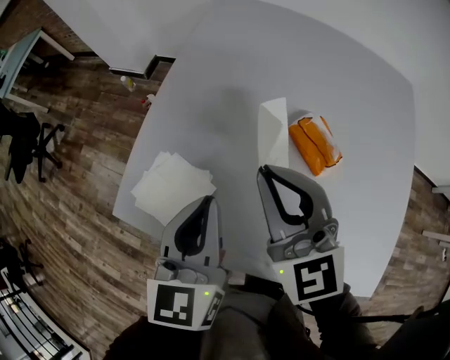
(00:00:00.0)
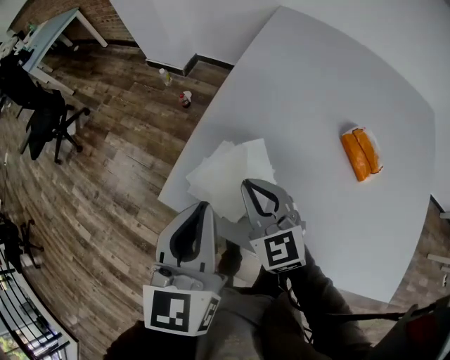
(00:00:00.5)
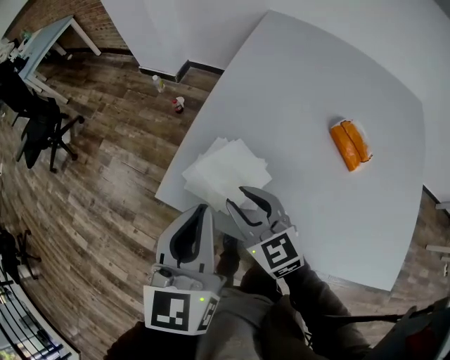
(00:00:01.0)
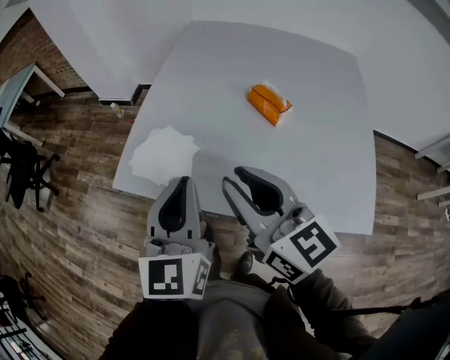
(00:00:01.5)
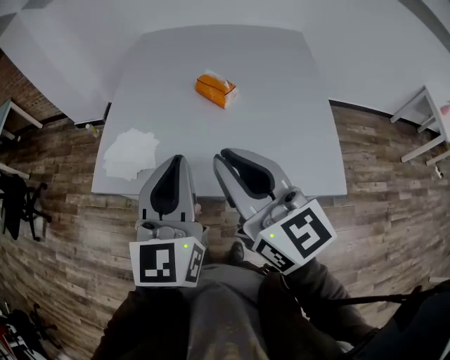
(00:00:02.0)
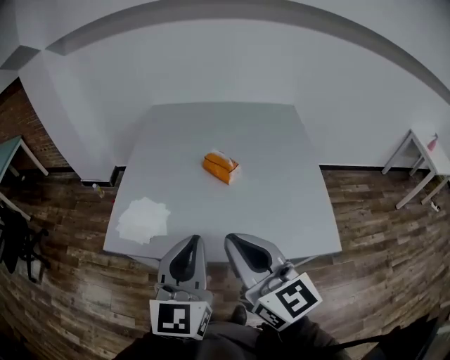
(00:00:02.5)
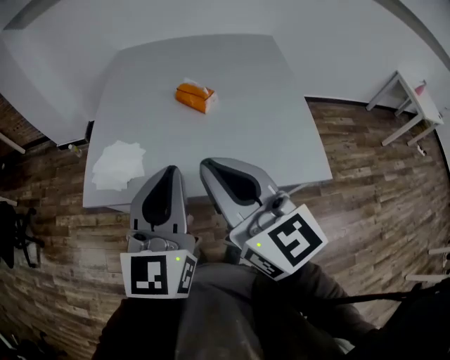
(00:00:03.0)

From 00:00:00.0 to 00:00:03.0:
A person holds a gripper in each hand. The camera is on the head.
From 00:00:00.0 to 00:00:01.5: The left gripper heads backward and upward, covering about 20 cm, and goes to the left and returns, approximately 20 cm each way. Meanwhile the right gripper heads backward, covering some 20 cm, turns by some 30 degrees, and opens its fingers.
From 00:00:01.5 to 00:00:03.0: The left gripper goes about 15 cm to the right, backward and upward, and swivels roughly 20 degrees; the right gripper shifts roughly 15 cm backward, upward and to the right, and closes.

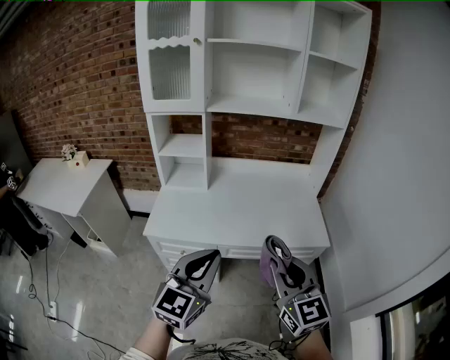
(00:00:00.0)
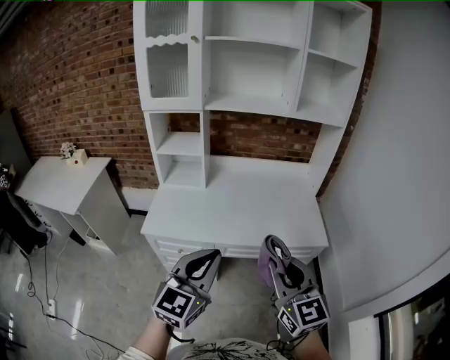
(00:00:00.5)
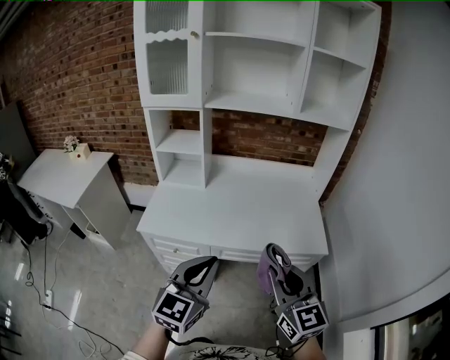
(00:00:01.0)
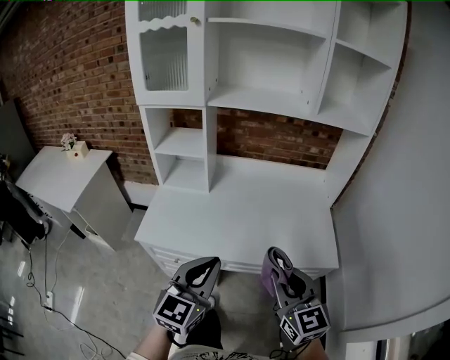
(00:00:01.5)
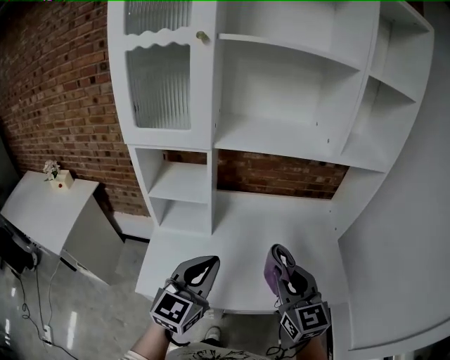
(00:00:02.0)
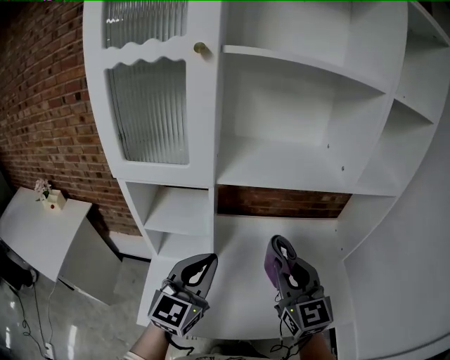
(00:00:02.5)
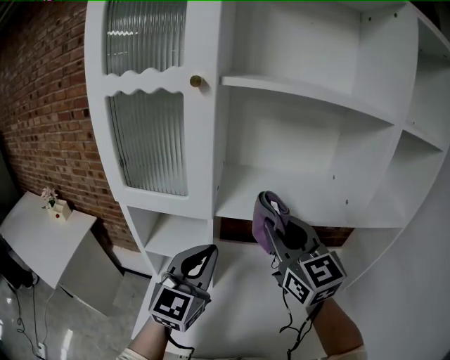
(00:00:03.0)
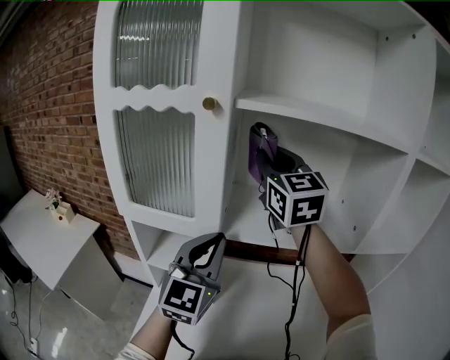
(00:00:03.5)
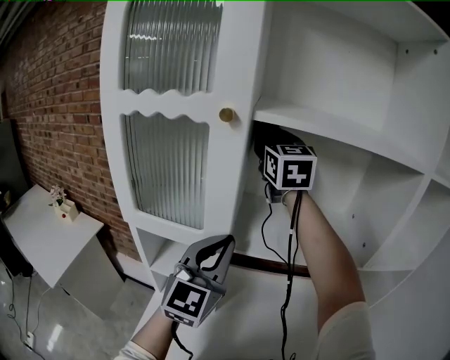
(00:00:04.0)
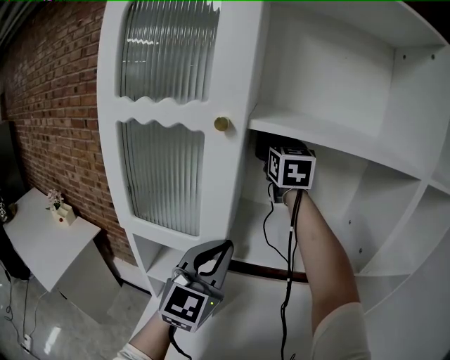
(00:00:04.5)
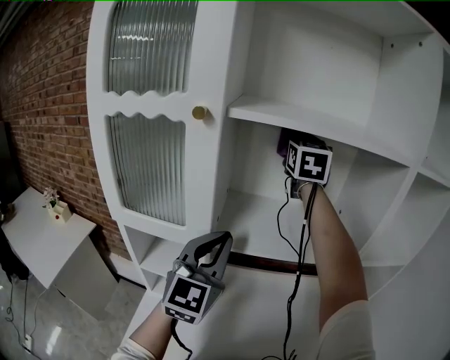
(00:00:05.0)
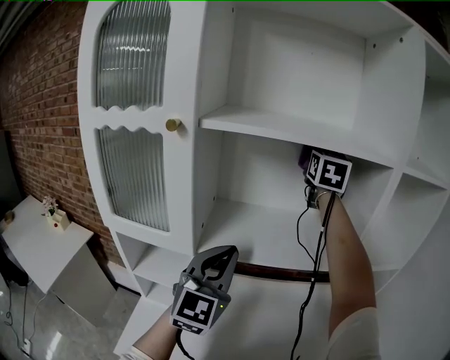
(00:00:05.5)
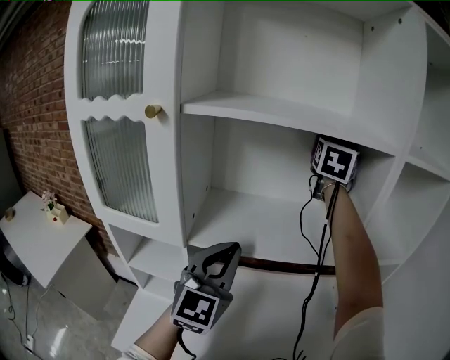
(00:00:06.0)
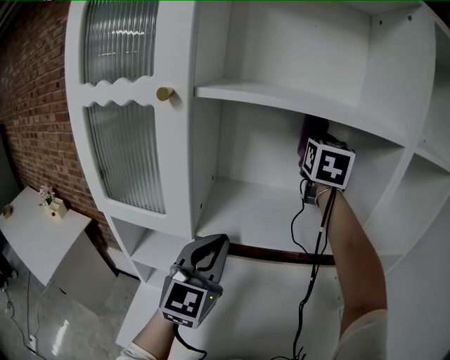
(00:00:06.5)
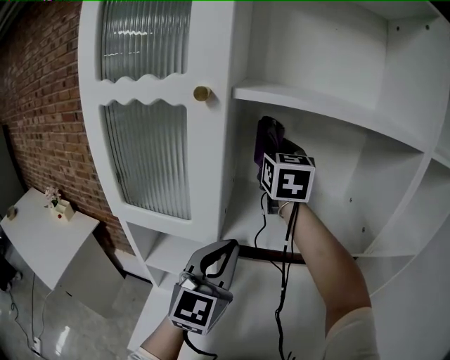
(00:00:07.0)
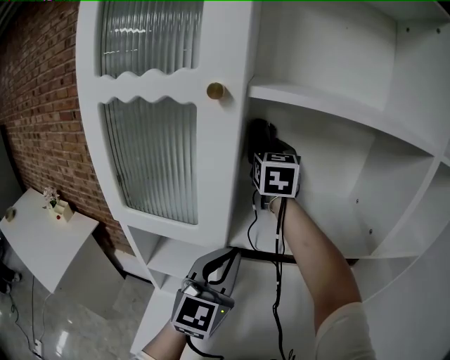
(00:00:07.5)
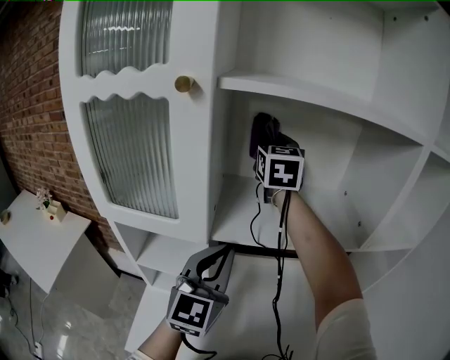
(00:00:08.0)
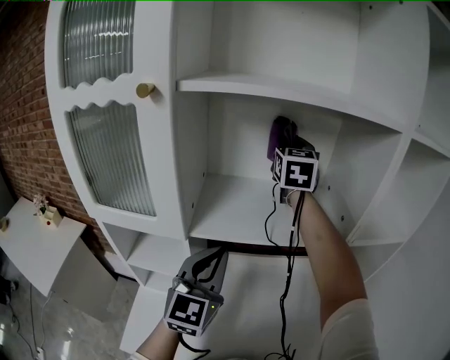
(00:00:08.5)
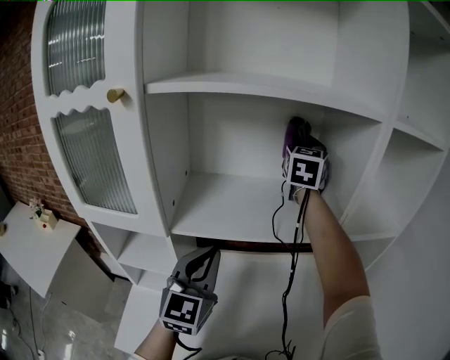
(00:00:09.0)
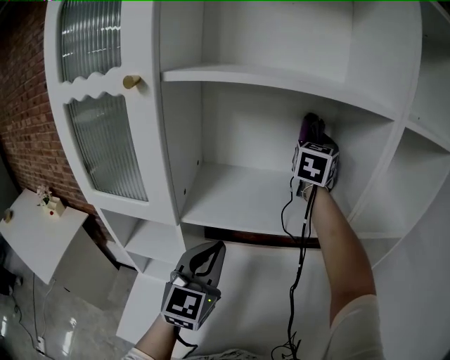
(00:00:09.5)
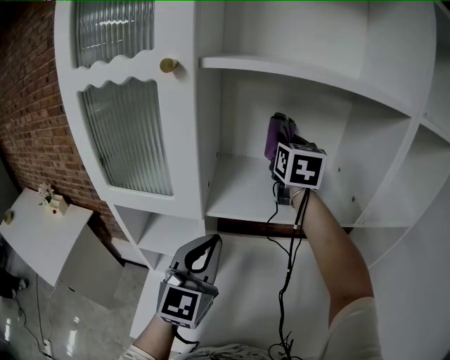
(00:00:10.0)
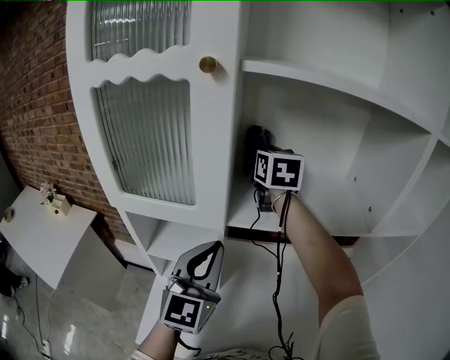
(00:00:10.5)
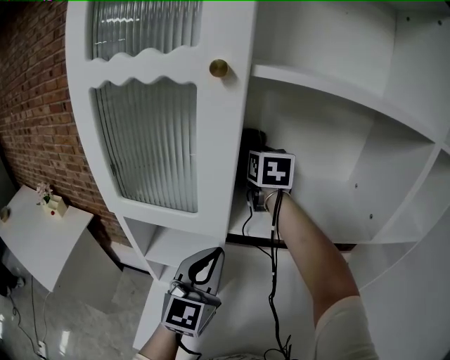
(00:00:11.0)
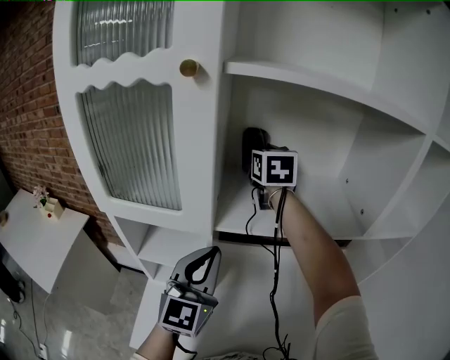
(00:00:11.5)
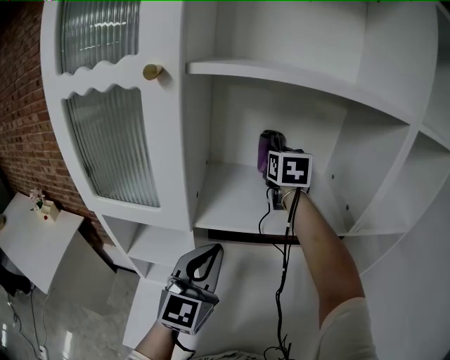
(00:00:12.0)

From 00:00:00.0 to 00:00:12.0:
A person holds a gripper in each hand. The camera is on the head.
From 00:00:00.0 to 00:00:02.0: The two grippers go some 30 cm forward.
From 00:00:02.0 to 00:00:04.0: The left gripper shifts approximately 35 cm forward and upward, and changes its angle by approximately 20 degrees. The right gripper goes approximately 60 cm forward and upward.
From 00:00:04.0 to 00:00:06.0: The right gripper heads to the right, covering roughly 30 cm, and rotates approximately 40 degrees; the left gripper moves to the right, roughly 10 cm.
From 00:00:06.0 to 00:00:08.0: The right gripper heads to the left, covering about 25 cm, and rotates about 20 degrees. The left gripper heads to the left, covering some 10 cm.
From 00:00:08.0 to 00:00:10.0: The right gripper goes some 10 cm to the right.
From 00:00:10.0 to 00:00:12.0: The right gripper goes to the left and returns, some 15 cm each way.

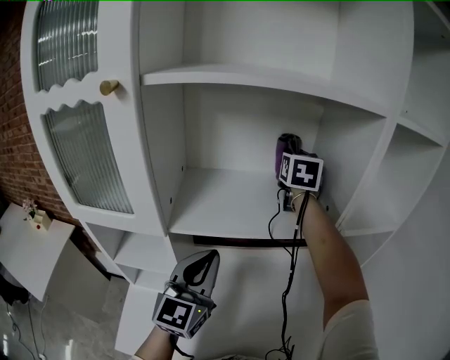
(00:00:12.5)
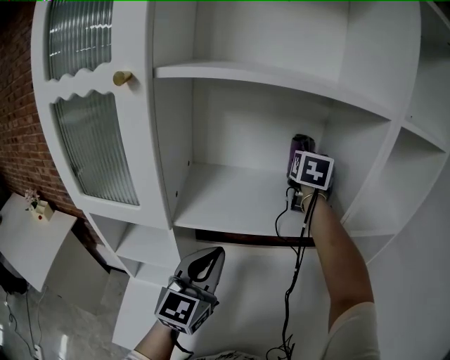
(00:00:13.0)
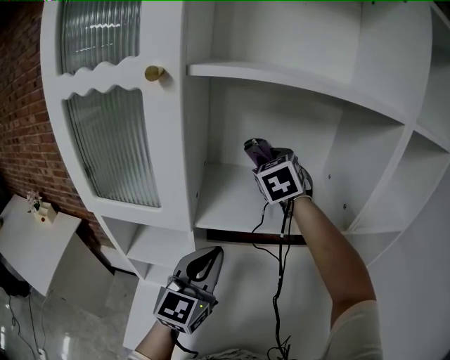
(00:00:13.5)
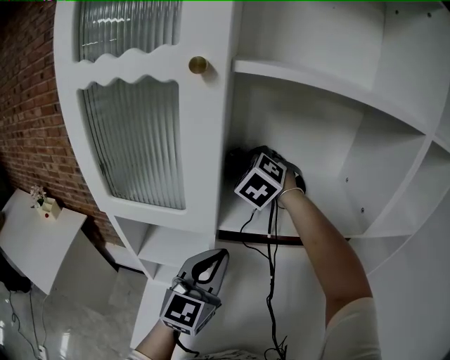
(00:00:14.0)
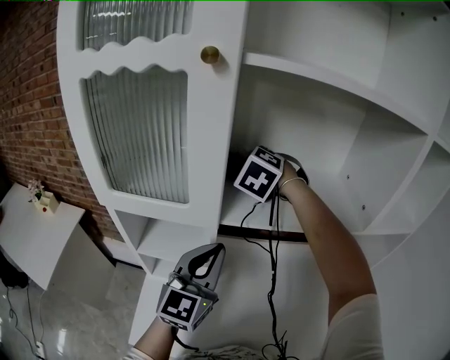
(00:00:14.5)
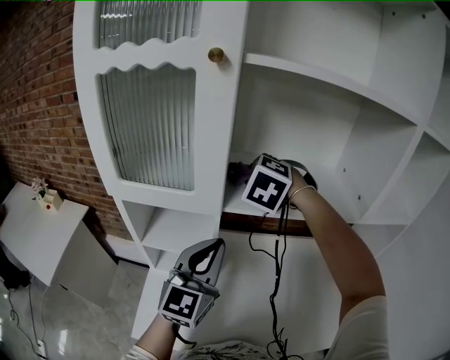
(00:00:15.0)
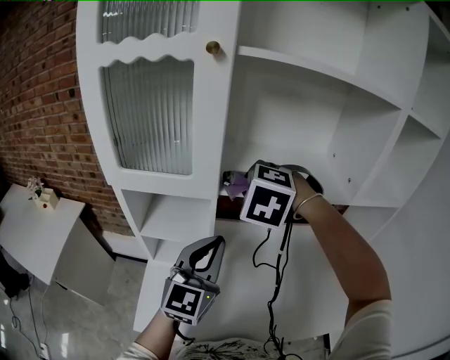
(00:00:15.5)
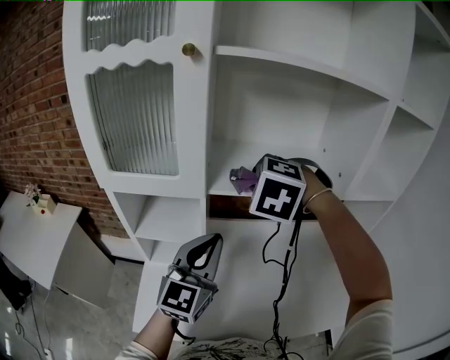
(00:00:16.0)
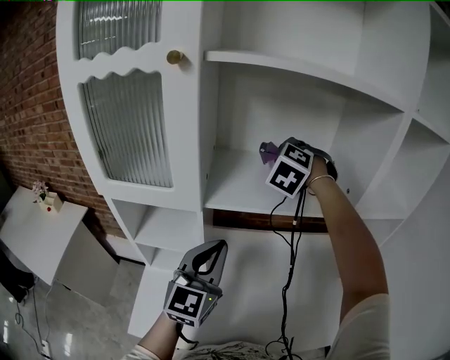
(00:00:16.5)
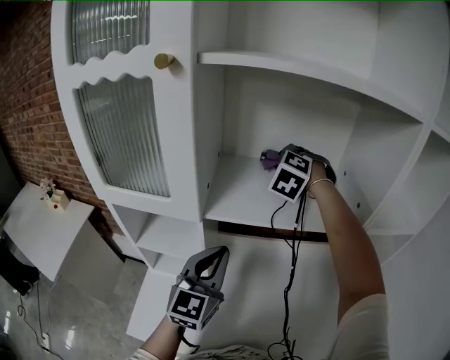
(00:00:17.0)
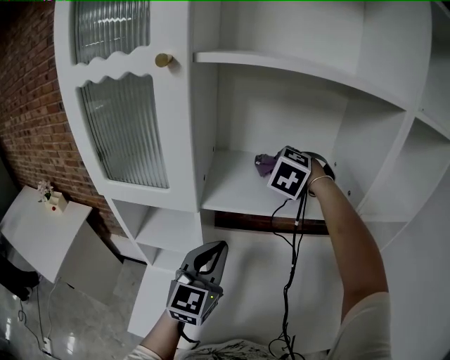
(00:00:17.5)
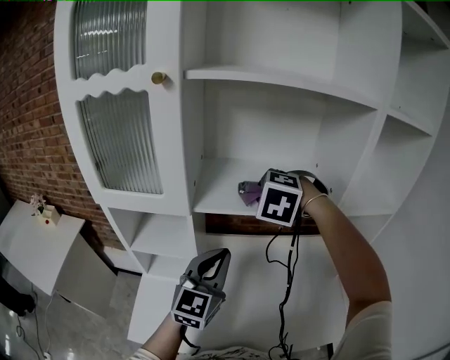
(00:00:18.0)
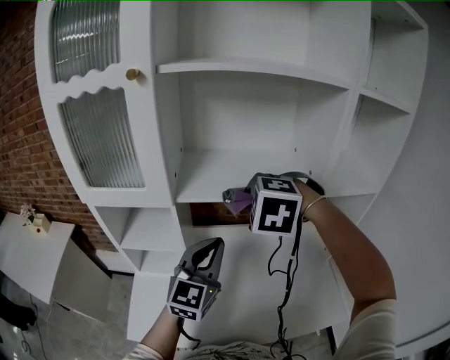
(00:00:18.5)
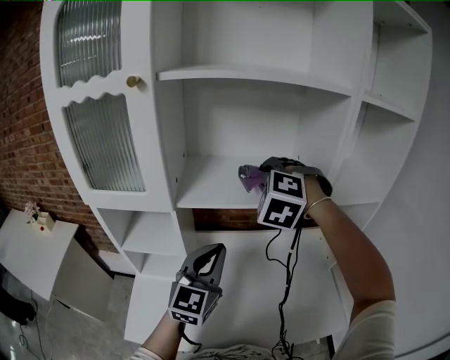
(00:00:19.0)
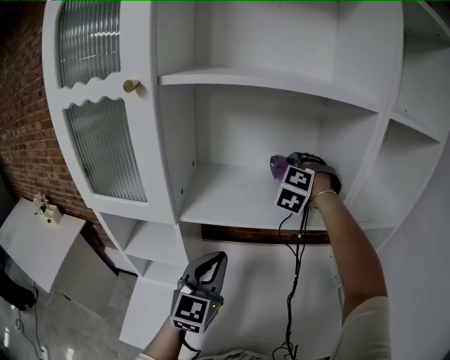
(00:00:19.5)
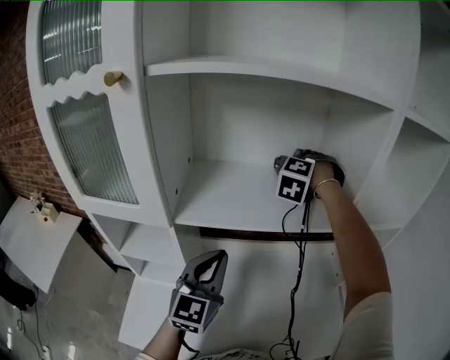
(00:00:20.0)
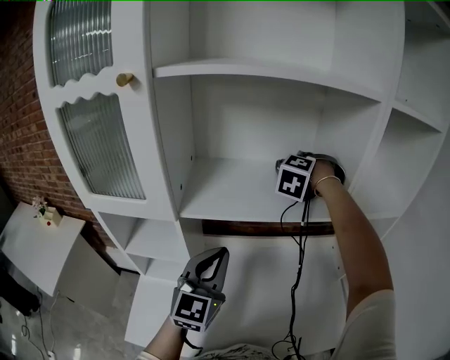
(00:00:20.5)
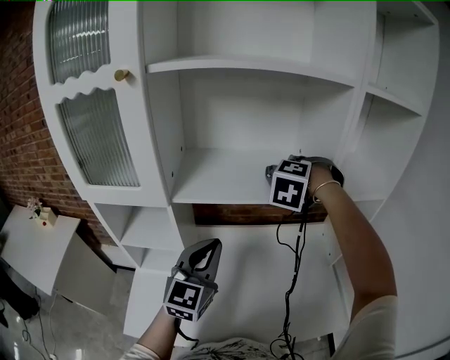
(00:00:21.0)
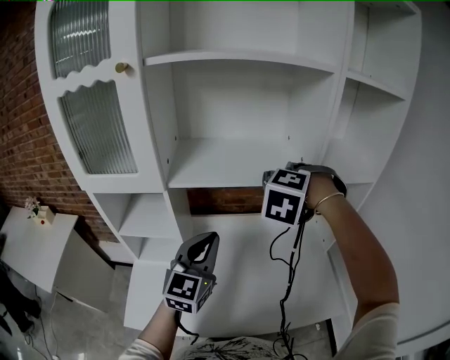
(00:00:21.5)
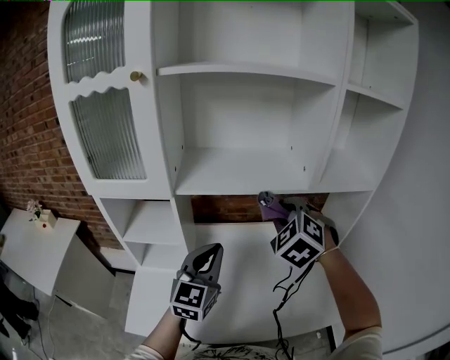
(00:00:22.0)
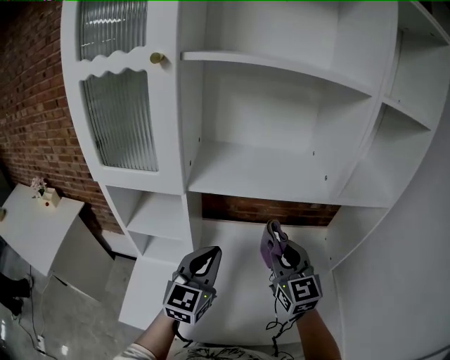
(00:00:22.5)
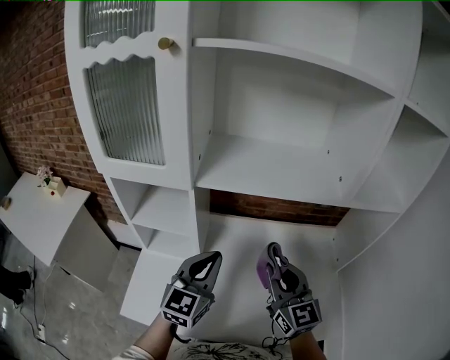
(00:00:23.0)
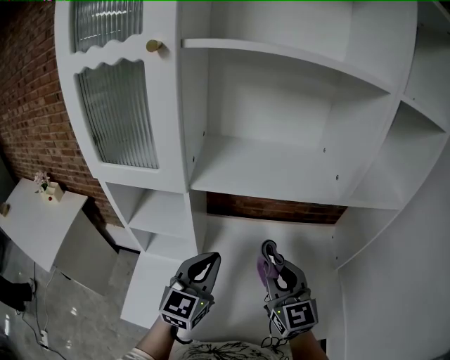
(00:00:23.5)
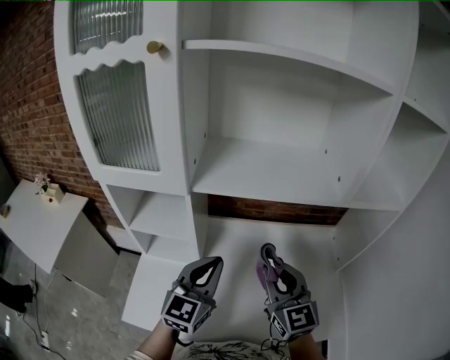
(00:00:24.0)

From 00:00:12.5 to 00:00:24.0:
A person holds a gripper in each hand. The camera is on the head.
From 00:00:12.5 to 00:00:14.5: The left gripper heads to the left, covering roughly 10 cm. The right gripper shifts roughly 25 cm to the left, and rotates around the line of its fingers by roughly 60 degrees, counterclockwise from behind.
From 00:00:14.5 to 00:00:16.5: The left gripper moves to the right, approximately 5 cm, while the right gripper travels to the right by approximately 15 cm, and reaches roughly 15 cm backward, then returns.
From 00:00:16.5 to 00:00:18.5: The right gripper travels backward by approximately 20 cm, and turns by approximately 20 degrees, while the left gripper goes approximately 5 cm to the right.
From 00:00:18.5 to 00:00:20.0: The right gripper is displaced forward by about 25 cm, and turns by approximately 30 degrees, while the left gripper travels forward by some 5 cm.
From 00:00:20.0 to 00:00:22.0: The right gripper is displaced backward by roughly 25 cm, and turns by some 30 degrees; the left gripper goes roughly 10 cm backward.
From 00:00:22.0 to 00:00:24.0: The right gripper travels downward, backward and to the left by roughly 10 cm, and swivels approximately 50 degrees, while the left gripper changes place by about 5 cm.
